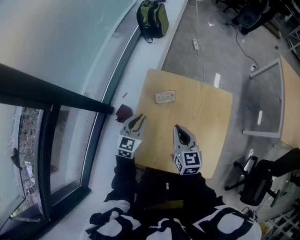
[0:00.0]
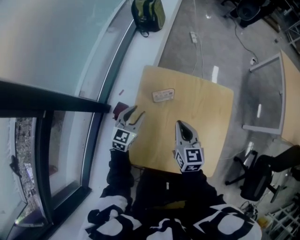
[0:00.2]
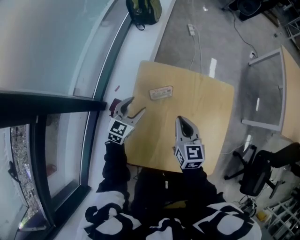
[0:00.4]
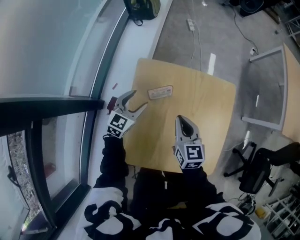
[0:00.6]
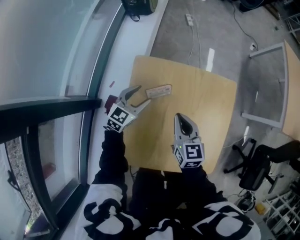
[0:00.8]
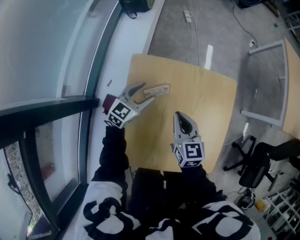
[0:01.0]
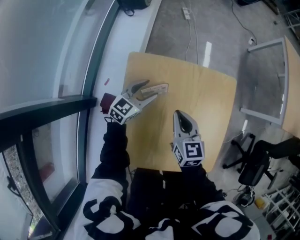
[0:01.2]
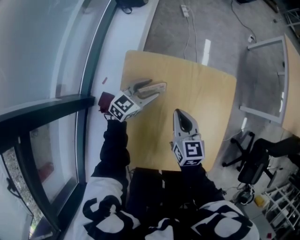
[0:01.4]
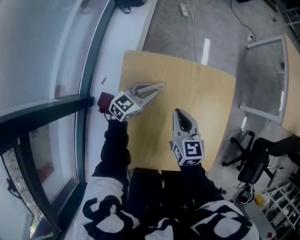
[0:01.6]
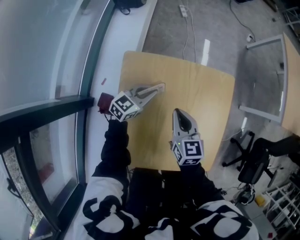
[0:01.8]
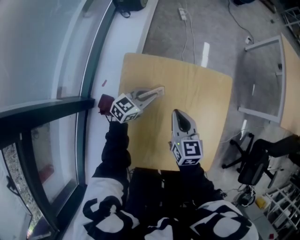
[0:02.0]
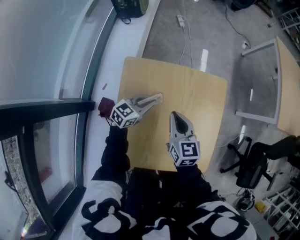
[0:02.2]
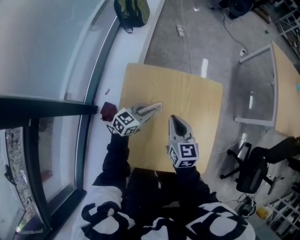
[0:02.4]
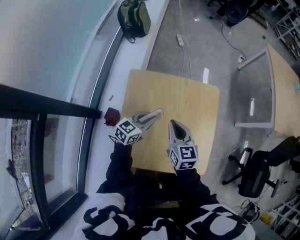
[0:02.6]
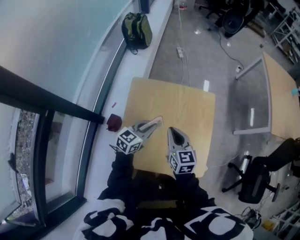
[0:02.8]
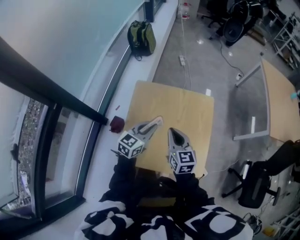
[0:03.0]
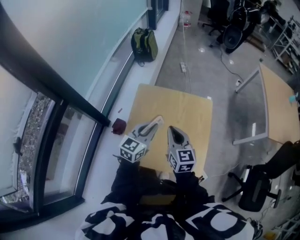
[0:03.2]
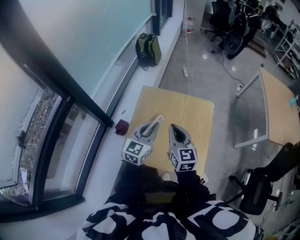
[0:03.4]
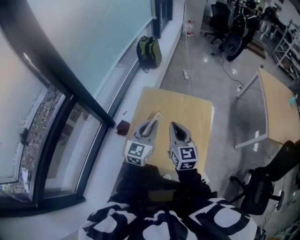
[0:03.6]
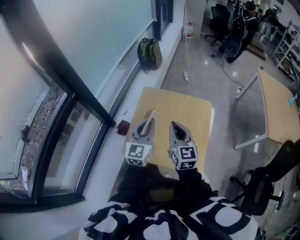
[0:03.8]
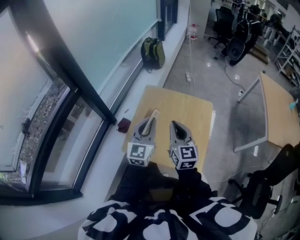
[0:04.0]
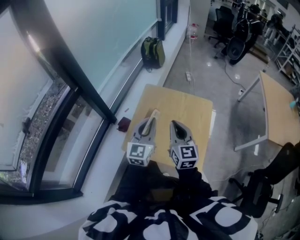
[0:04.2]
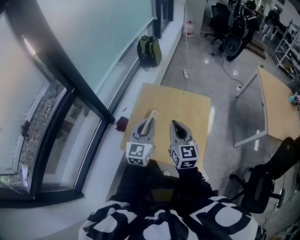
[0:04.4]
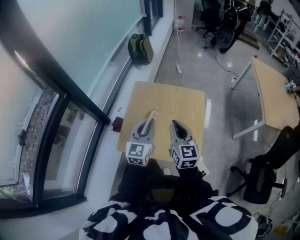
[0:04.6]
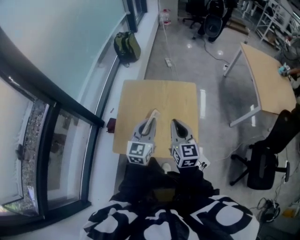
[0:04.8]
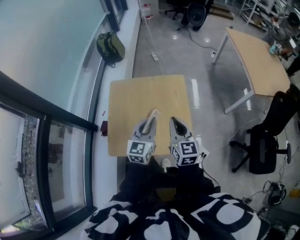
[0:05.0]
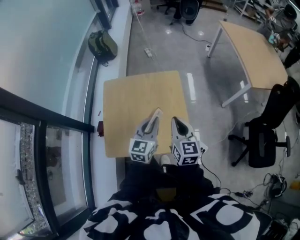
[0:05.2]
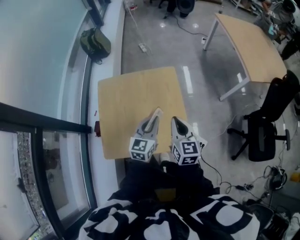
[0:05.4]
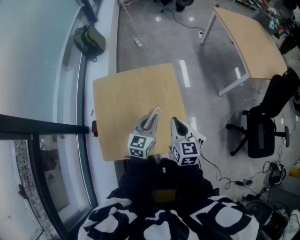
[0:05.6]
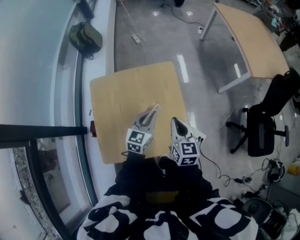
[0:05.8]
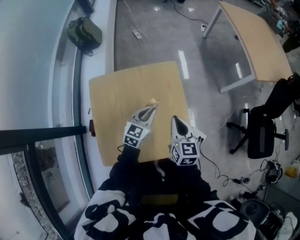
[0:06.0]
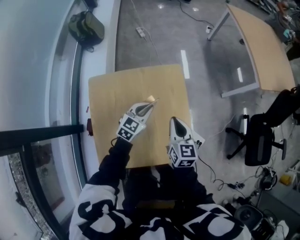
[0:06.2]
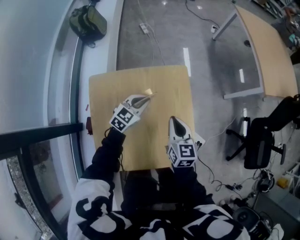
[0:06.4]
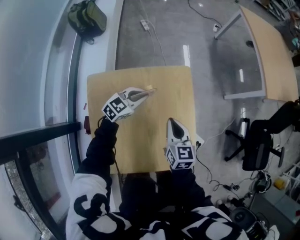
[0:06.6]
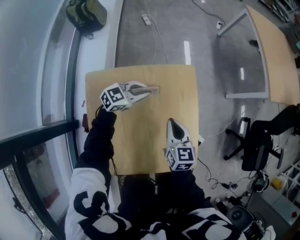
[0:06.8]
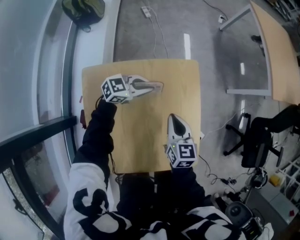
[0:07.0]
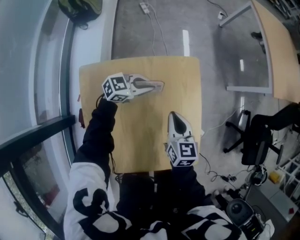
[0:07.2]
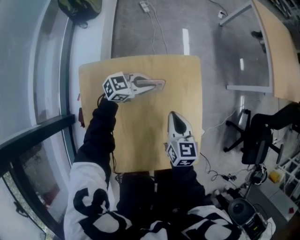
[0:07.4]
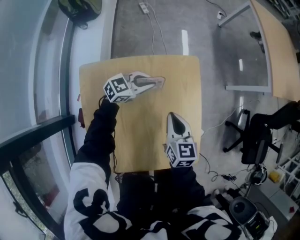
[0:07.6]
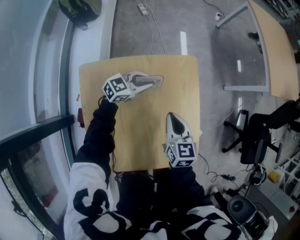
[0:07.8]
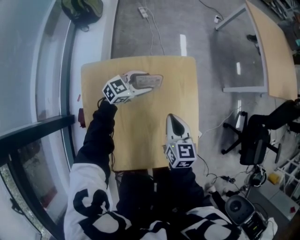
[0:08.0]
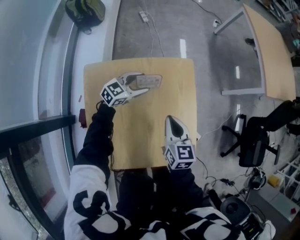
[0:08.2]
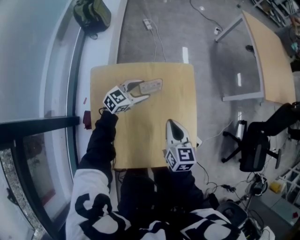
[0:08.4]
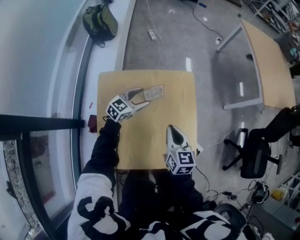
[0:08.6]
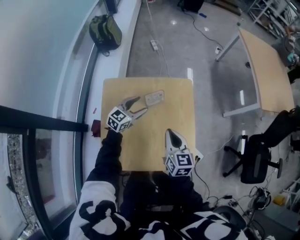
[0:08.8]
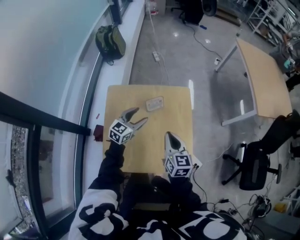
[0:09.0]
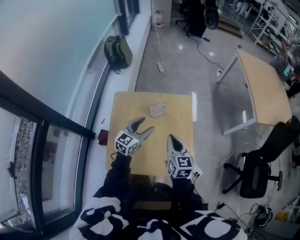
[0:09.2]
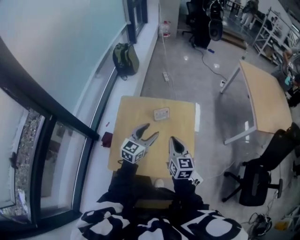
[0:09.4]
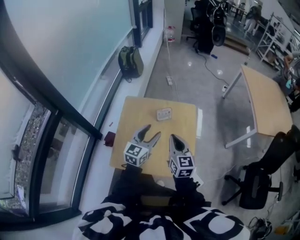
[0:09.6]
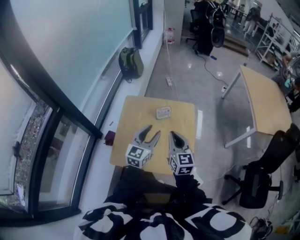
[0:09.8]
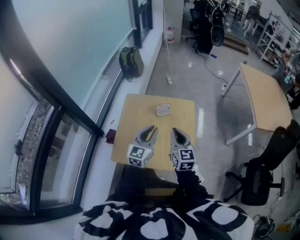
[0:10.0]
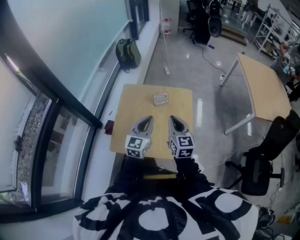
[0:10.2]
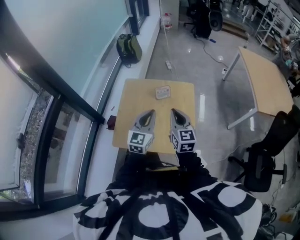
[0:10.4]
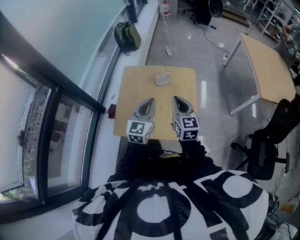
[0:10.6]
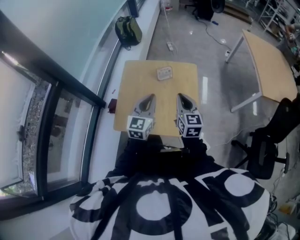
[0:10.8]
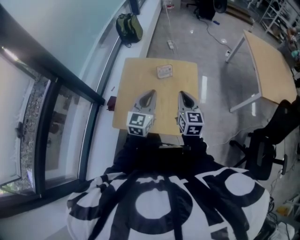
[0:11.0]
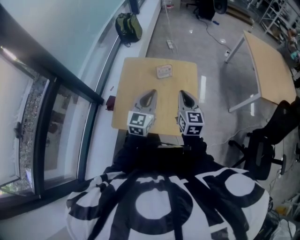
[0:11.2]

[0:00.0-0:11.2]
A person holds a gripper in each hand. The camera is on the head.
0:00.0 to 0:01.6: The left gripper goes about 20 cm forward, downward and to the right, turns by about 40 degrees, and opens, then closes again. Meanwhile the right gripper heads forward and downward, covering roughly 10 cm.
0:01.6 to 0:03.2: Both grippers move upward and backward, about 25 cm. The left gripper turns by about 30 degrees.
0:03.2 to 0:04.8: The right gripper shifts some 10 cm to the right and backward; the left gripper heads backward and to the right, covering roughly 10 cm.
0:04.8 to 0:06.4: The right gripper shifts roughly 15 cm downward, and rotates approximately 20 degrees. The left gripper ends up some 30 cm from where it was, and turns by roughly 50 degrees.
0:06.4 to 0:08.0: The left gripper travels downward by roughly 5 cm, rotates about 20 degrees, and opens.
0:08.0 to 0:09.6: The right gripper goes some 15 cm upward, and rotates about 30 degrees; the left gripper moves about 30 cm, and turns by about 50 degrees.
0:09.6 to 0:11.2: The left gripper heads backward, covering some 5 cm, and closes its fingers.

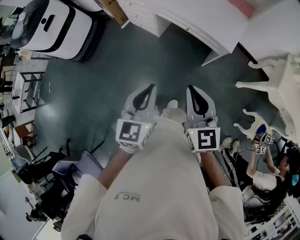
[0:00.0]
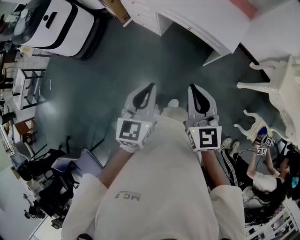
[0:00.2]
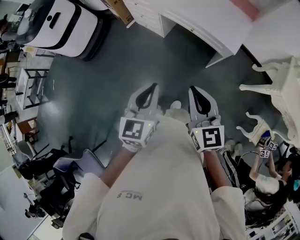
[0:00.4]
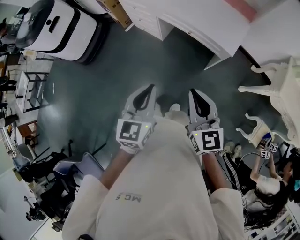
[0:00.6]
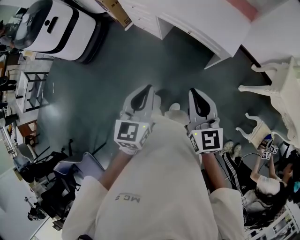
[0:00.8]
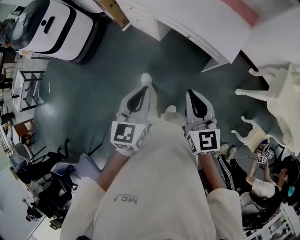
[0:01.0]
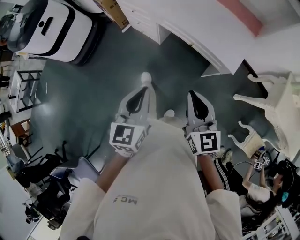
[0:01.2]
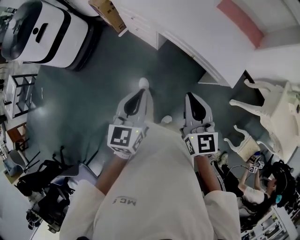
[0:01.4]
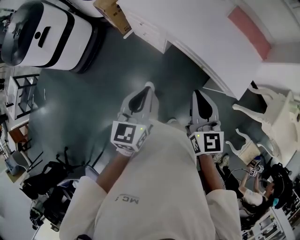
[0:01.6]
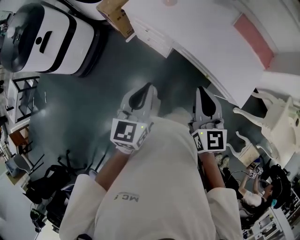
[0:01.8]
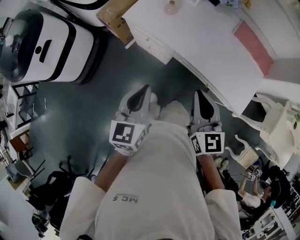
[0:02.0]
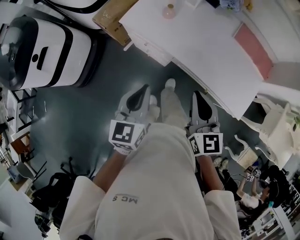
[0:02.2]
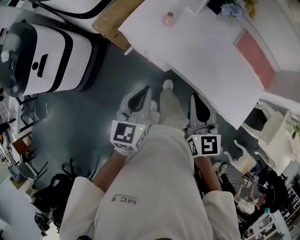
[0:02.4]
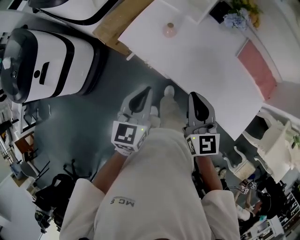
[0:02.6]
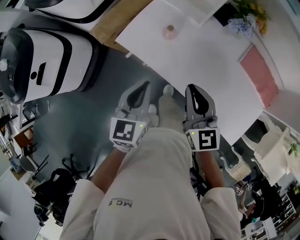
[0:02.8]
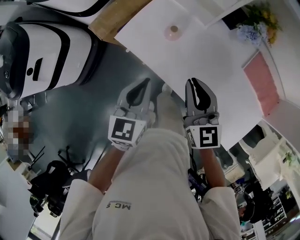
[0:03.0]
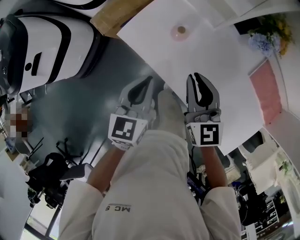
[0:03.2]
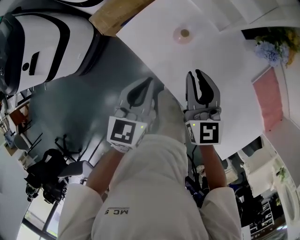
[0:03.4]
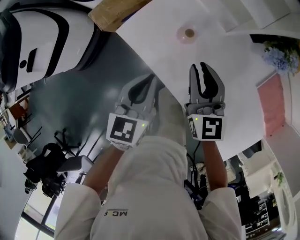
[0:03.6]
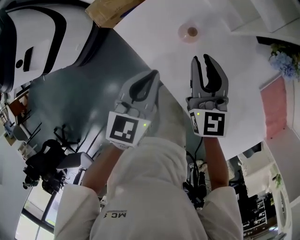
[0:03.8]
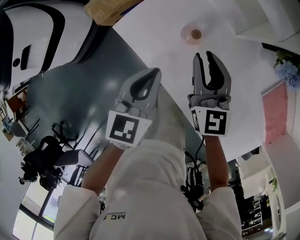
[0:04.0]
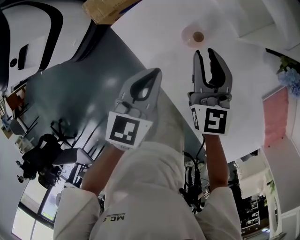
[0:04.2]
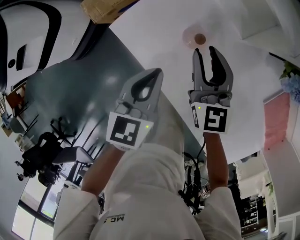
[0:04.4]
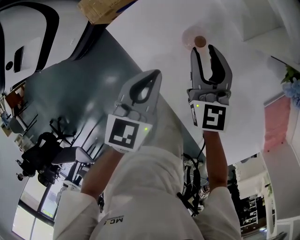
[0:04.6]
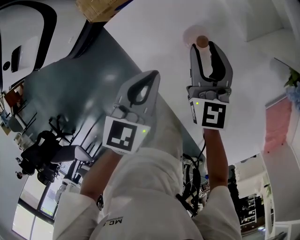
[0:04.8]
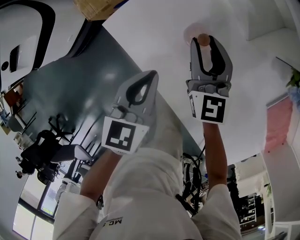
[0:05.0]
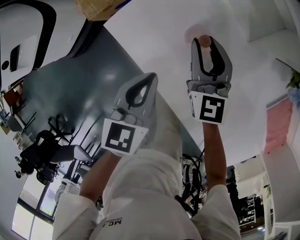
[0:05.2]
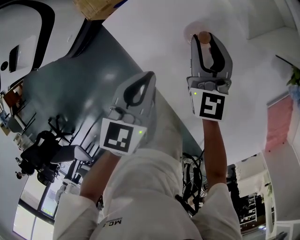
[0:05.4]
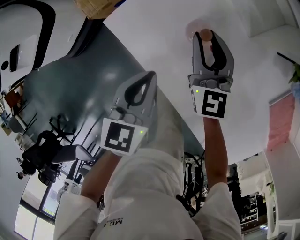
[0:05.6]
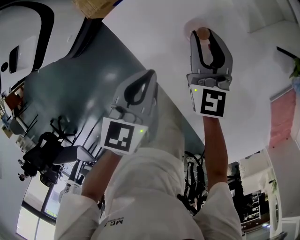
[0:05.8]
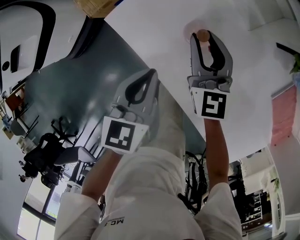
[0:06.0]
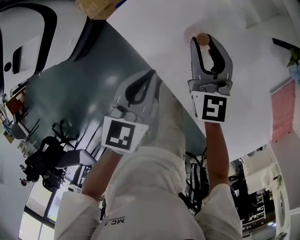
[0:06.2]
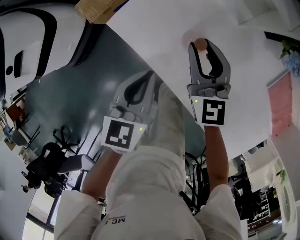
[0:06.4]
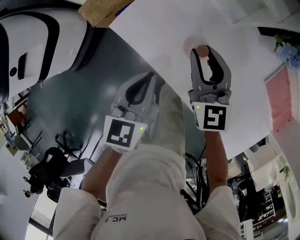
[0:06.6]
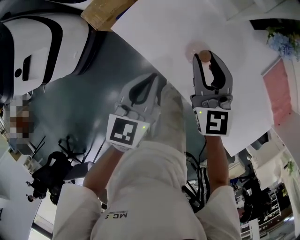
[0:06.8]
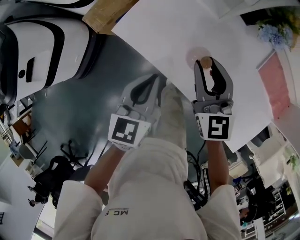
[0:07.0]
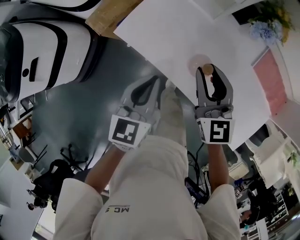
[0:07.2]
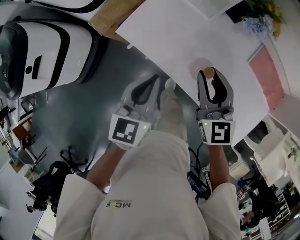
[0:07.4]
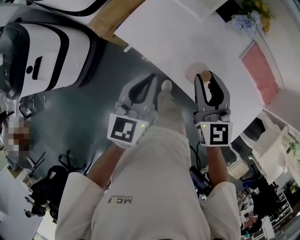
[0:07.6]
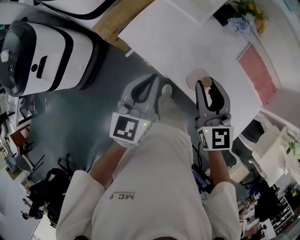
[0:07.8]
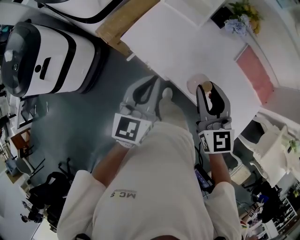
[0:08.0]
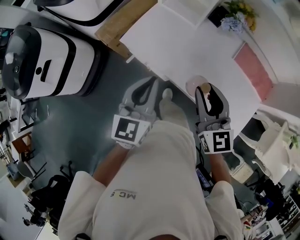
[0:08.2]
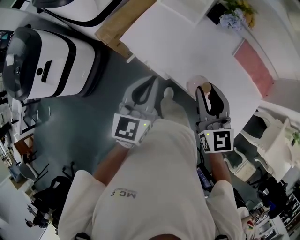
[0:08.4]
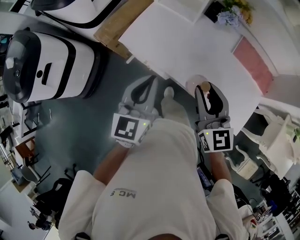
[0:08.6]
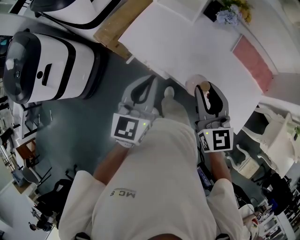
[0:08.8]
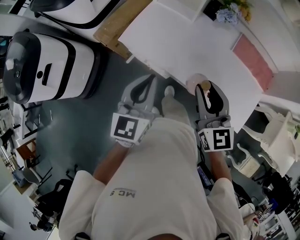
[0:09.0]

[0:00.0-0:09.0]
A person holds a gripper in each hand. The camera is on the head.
0:00.0 to 0:01.6: The left gripper is displaced forward and to the left by approximately 35 cm; the right gripper moves forward, approximately 30 cm.
0:01.6 to 0:03.0: The pair of grippers is taken forward, some 40 cm.
0:03.0 to 0:04.4: The left gripper goes approximately 20 cm downward and forward, while the right gripper heads forward and downward, covering approximately 25 cm, and opens up.
0:04.4 to 0:06.0: There are only small adjustments of the grippers.
0:06.0 to 0:07.6: The grippers both shift upward and backward by approximately 30 cm. The left gripper changes its angle by about 20 degrees.
0:07.6 to 0:09.0: The grippers both shift backward and upward by some 10 cm.

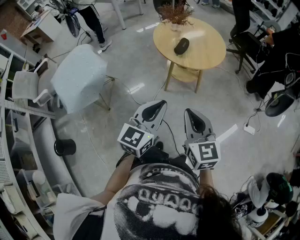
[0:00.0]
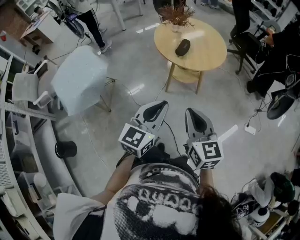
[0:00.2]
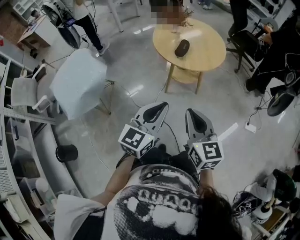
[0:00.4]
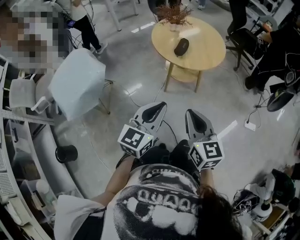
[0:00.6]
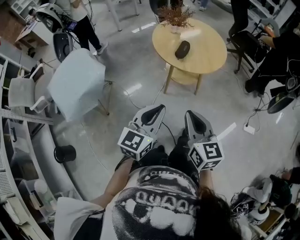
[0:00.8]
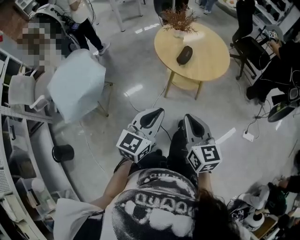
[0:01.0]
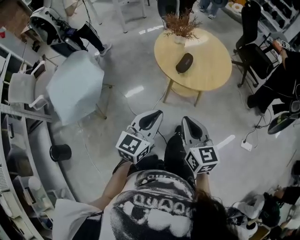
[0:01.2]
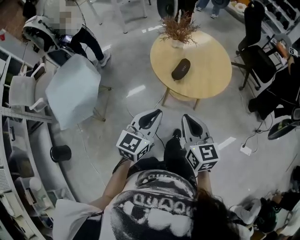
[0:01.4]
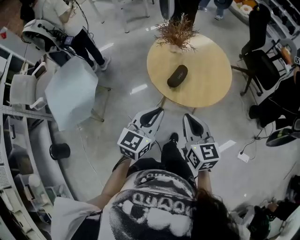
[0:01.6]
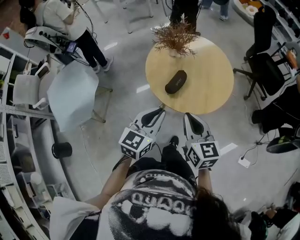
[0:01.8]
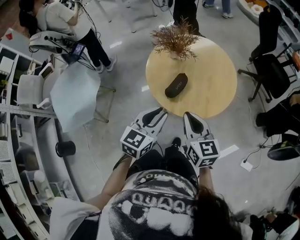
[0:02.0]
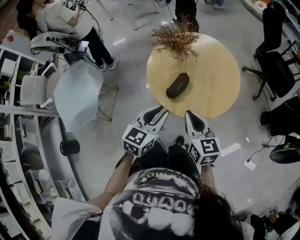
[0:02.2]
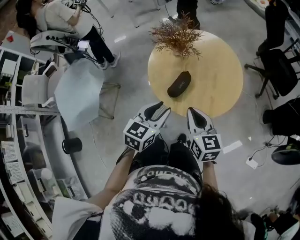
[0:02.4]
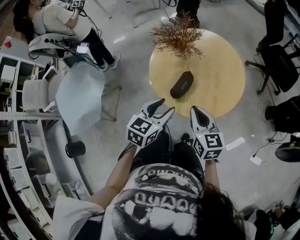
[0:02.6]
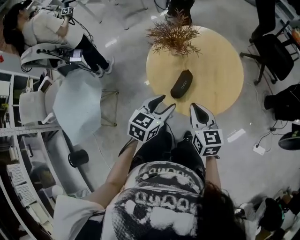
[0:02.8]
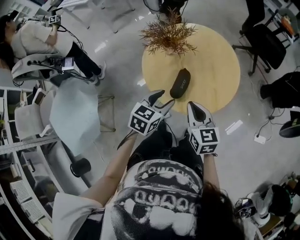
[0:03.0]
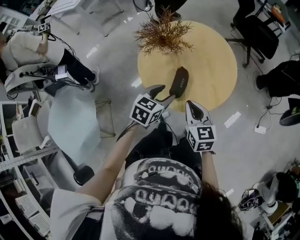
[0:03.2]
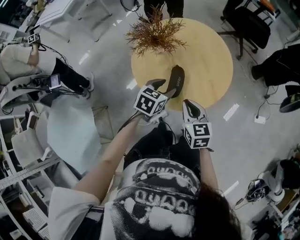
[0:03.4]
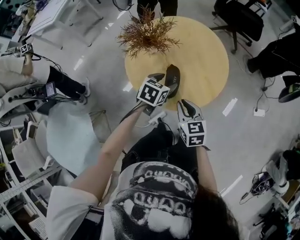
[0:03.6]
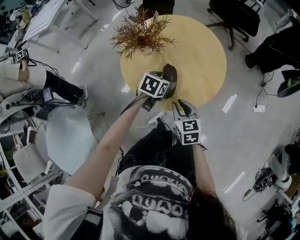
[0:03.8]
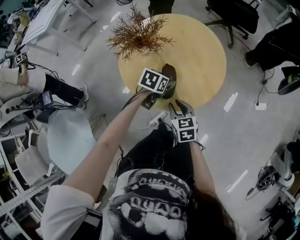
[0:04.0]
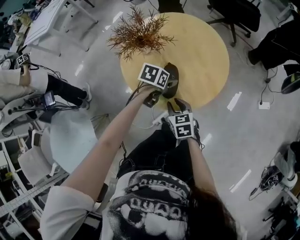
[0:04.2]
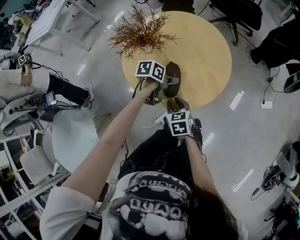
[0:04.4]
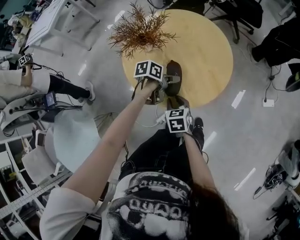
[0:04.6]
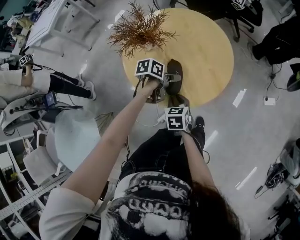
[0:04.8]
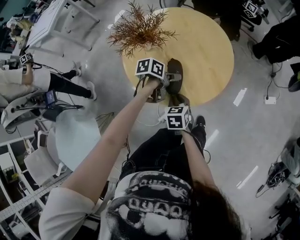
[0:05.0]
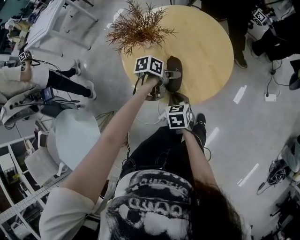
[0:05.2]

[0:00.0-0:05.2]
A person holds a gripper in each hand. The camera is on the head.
0:00.0 to 0:01.8: Both grippers travel together forward, about 30 cm.
0:01.8 to 0:03.4: The left gripper changes place by approximately 25 cm, swivels some 40 degrees, and opens up; the right gripper moves downward, some 10 cm, and turns by some 30 degrees.
0:03.4 to 0:05.2: Both grippers move downward, roughly 10 cm. The right gripper swivels approximately 20 degrees, and opens and closes again. The left gripper rotates roughly 50 degrees.
